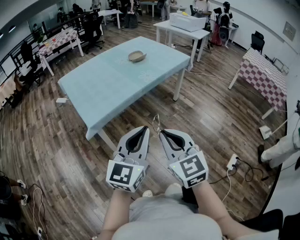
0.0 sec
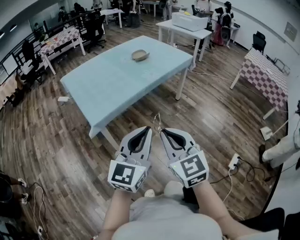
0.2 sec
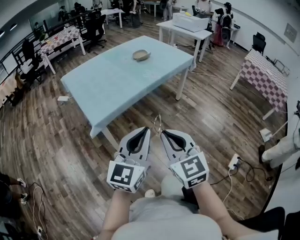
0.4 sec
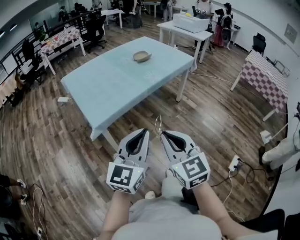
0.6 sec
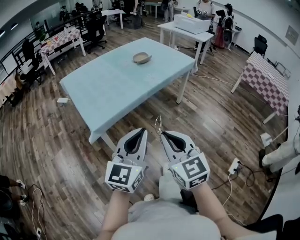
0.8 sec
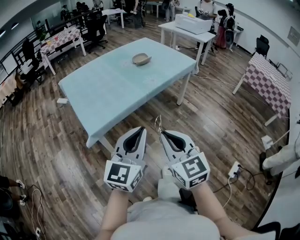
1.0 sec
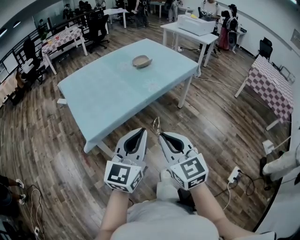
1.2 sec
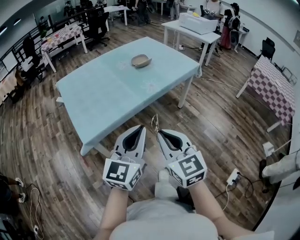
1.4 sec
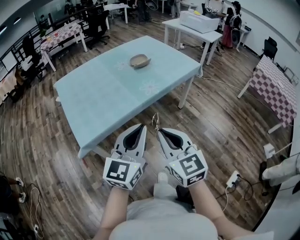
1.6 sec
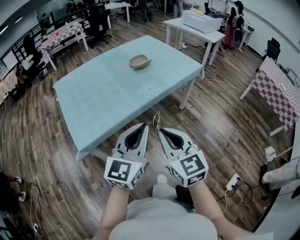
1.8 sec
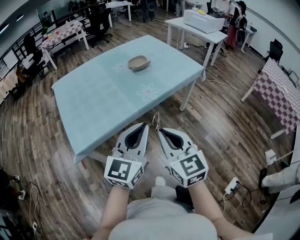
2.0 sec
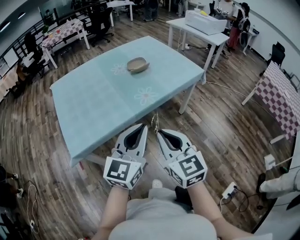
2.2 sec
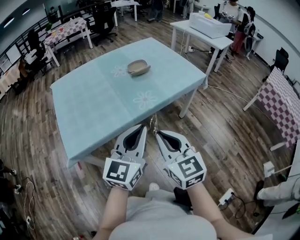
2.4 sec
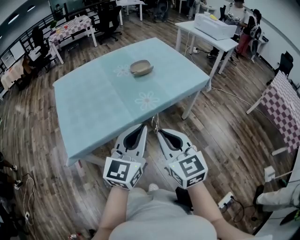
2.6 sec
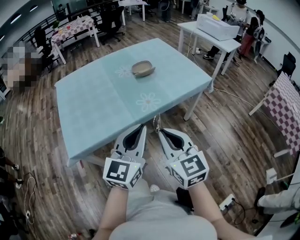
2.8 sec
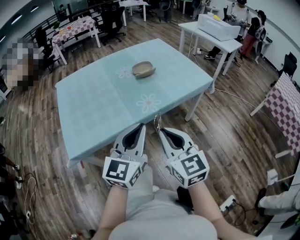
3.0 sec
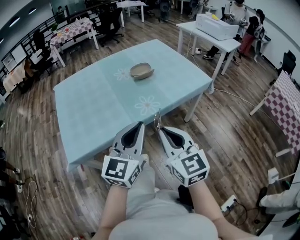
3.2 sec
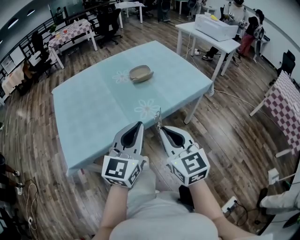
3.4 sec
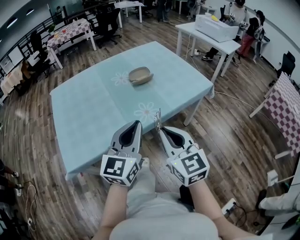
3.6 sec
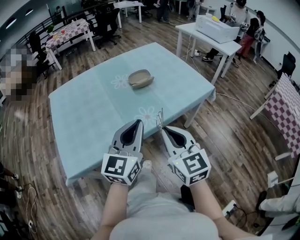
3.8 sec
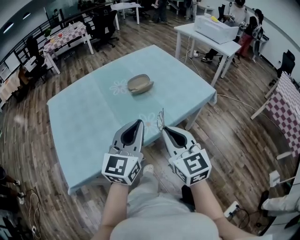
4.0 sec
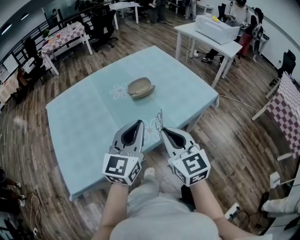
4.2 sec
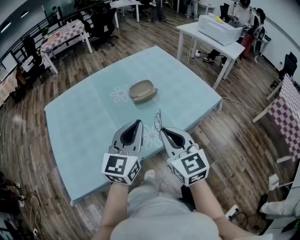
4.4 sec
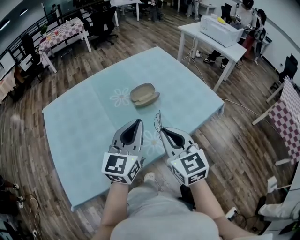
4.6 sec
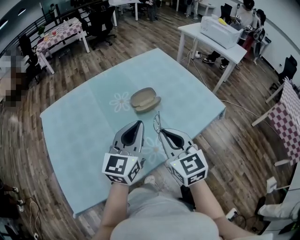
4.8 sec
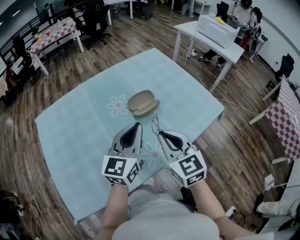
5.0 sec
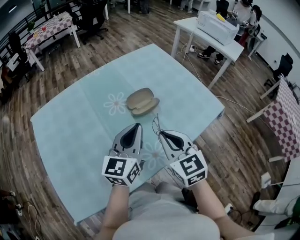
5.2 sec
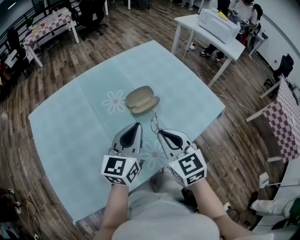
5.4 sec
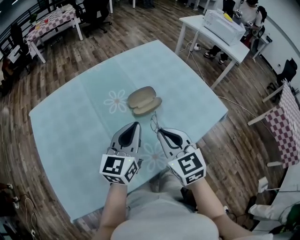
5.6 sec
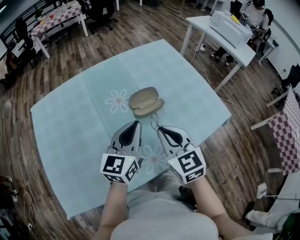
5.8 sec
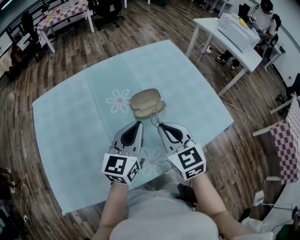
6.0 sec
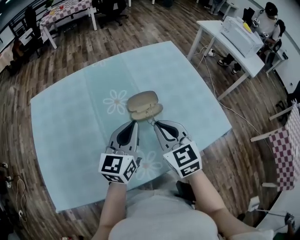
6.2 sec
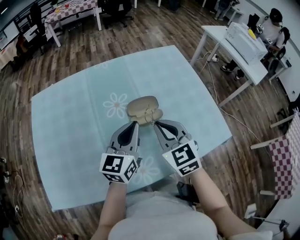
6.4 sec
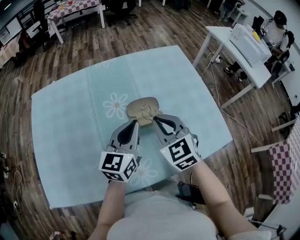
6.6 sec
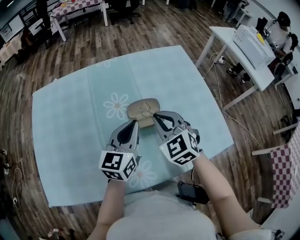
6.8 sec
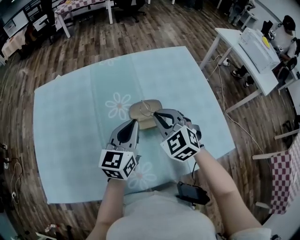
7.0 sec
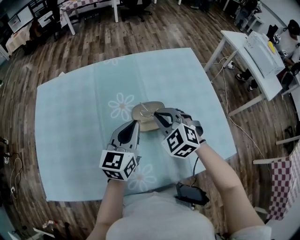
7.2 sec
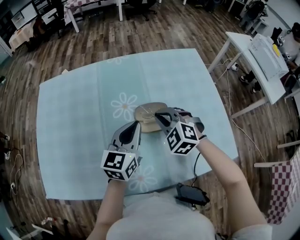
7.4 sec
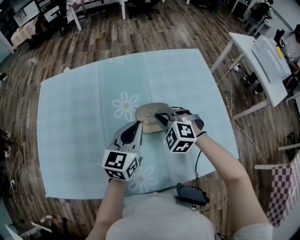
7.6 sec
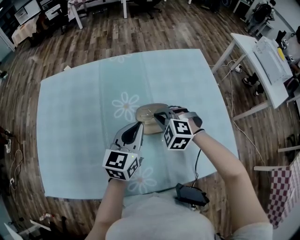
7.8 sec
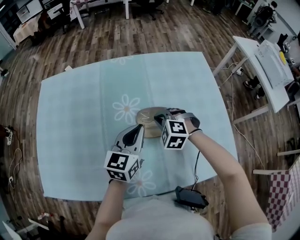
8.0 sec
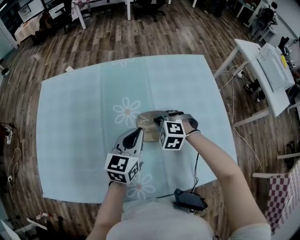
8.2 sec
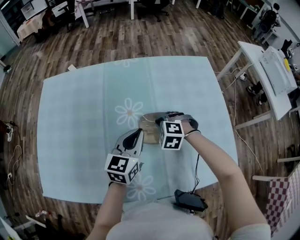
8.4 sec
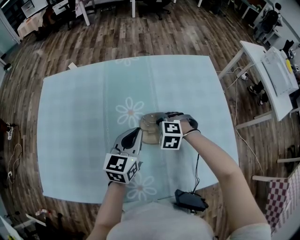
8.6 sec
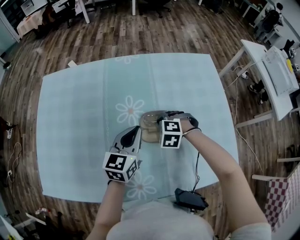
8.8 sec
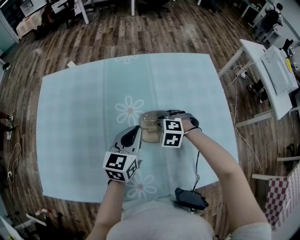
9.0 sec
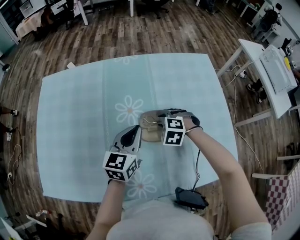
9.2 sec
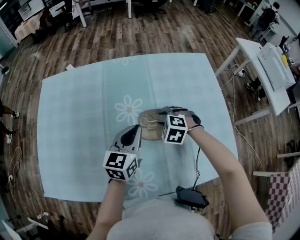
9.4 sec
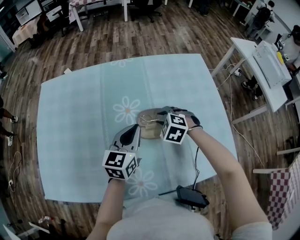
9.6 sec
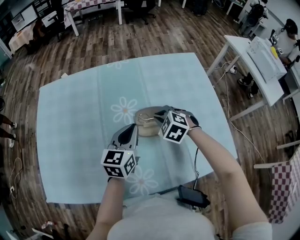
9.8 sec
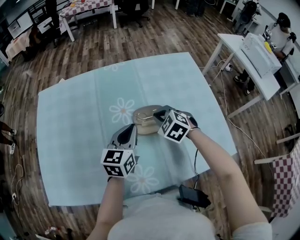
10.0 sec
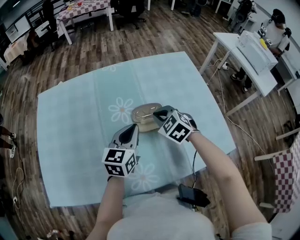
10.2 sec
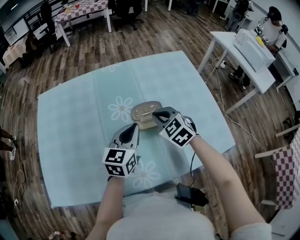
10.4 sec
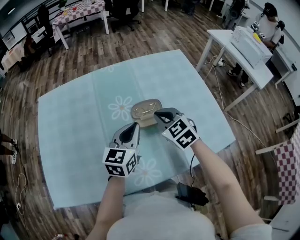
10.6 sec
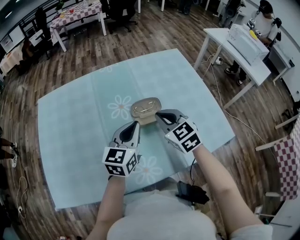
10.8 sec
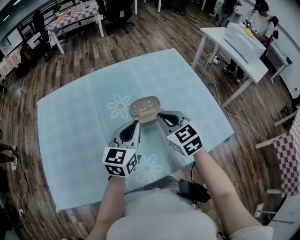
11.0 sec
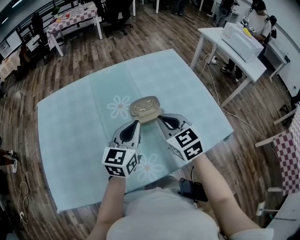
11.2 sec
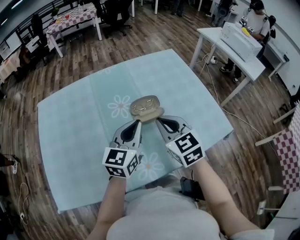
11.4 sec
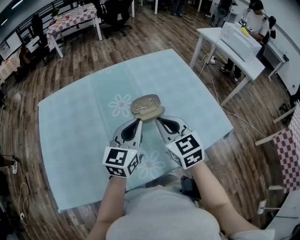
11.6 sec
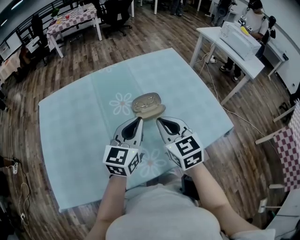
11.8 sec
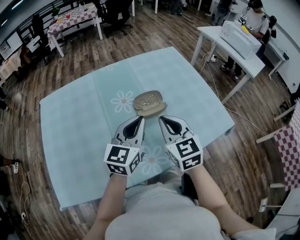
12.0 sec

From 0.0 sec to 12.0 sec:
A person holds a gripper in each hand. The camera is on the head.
From 0.0 sec to 1.6 sec: Both grippers move forward, approximately 20 cm.
From 1.6 sec to 3.0 sec: Both grippers move forward and to the right, about 15 cm.
From 3.0 sec to 4.4 sec: Both grippers travel together forward, about 25 cm.
From 4.4 sec to 6.0 sec: Both grippers travel together forward, some 20 cm.
From 6.0 sec to 7.6 sec: The left gripper moves forward and downward, roughly 10 cm. Meanwhile the right gripper travels forward and downward by some 20 cm, and twists approximately 50 degrees counterclockwise, seen from behind.
From 7.6 sec to 9.0 sec: The right gripper heads downward, covering some 10 cm, and swivels roughly 20 degrees. The left gripper changes place by about 5 cm.
From 9.0 sec to 10.4 sec: The right gripper goes approximately 15 cm upward, and swivels approximately 50 degrees. The left gripper heads backward, covering some 5 cm.
From 10.4 sec to 12.0 sec: The left gripper goes roughly 10 cm backward and upward; the right gripper shifts some 15 cm backward and upward, and changes its angle by about 40 degrees.

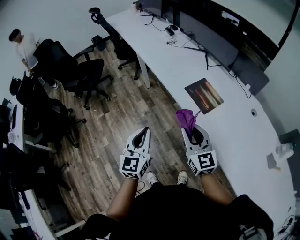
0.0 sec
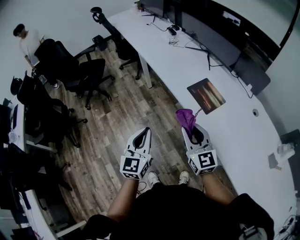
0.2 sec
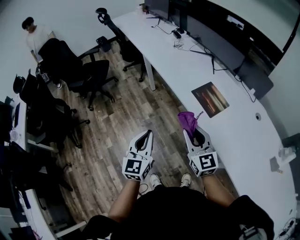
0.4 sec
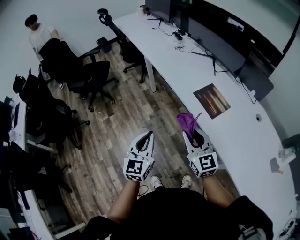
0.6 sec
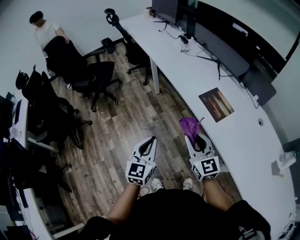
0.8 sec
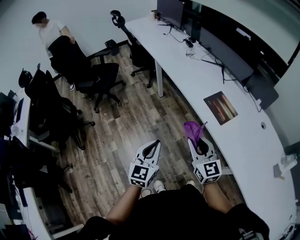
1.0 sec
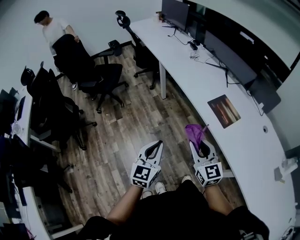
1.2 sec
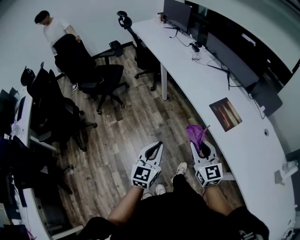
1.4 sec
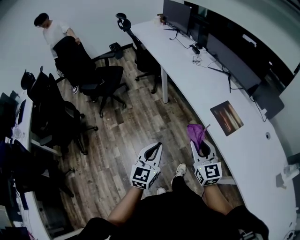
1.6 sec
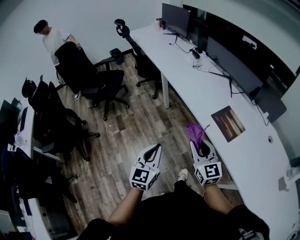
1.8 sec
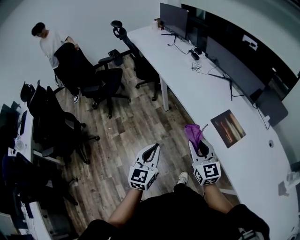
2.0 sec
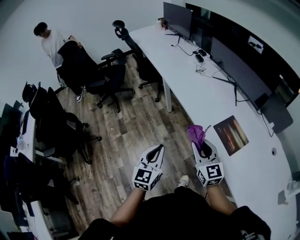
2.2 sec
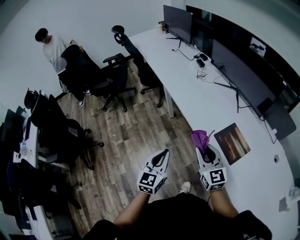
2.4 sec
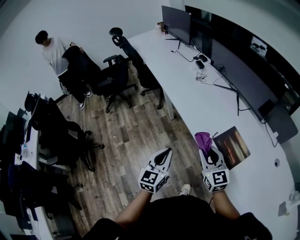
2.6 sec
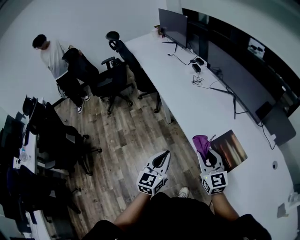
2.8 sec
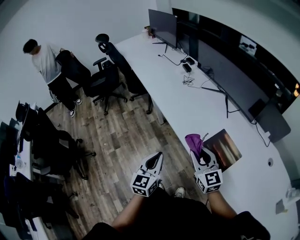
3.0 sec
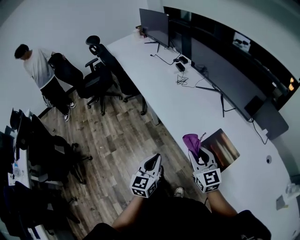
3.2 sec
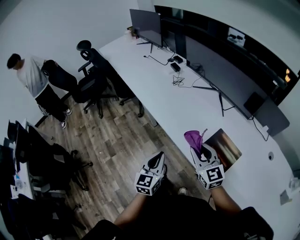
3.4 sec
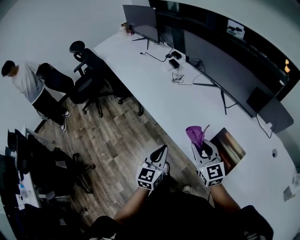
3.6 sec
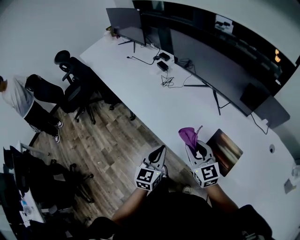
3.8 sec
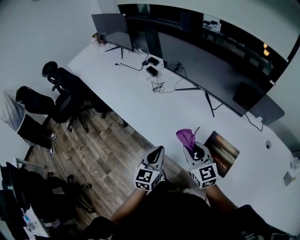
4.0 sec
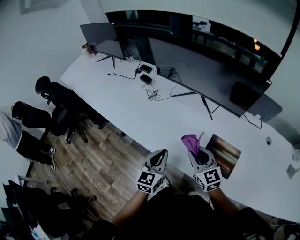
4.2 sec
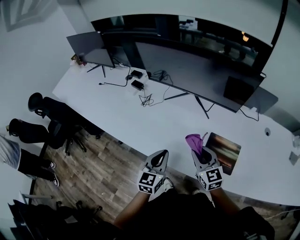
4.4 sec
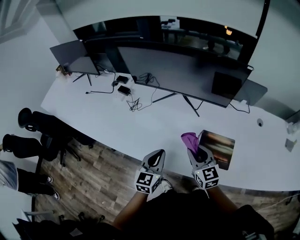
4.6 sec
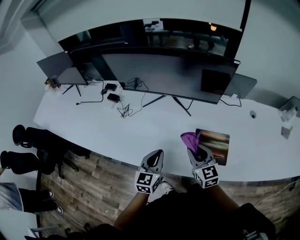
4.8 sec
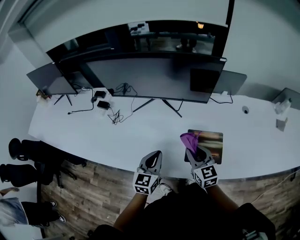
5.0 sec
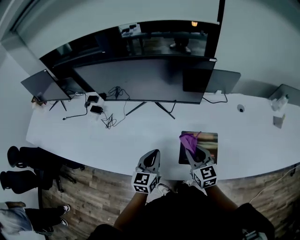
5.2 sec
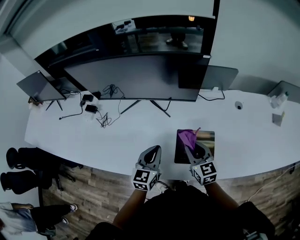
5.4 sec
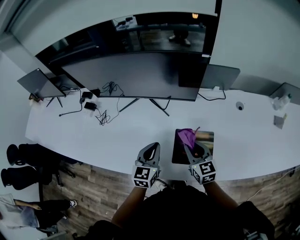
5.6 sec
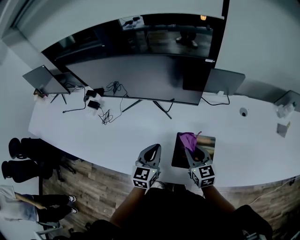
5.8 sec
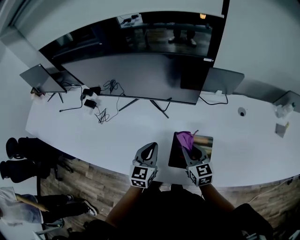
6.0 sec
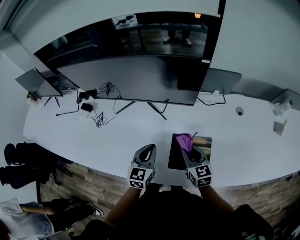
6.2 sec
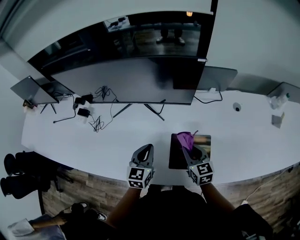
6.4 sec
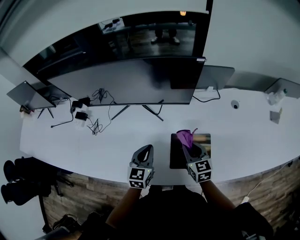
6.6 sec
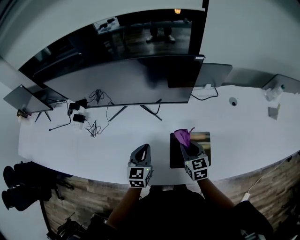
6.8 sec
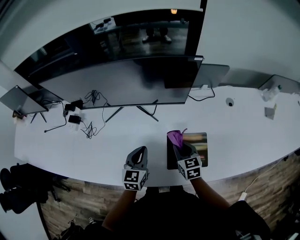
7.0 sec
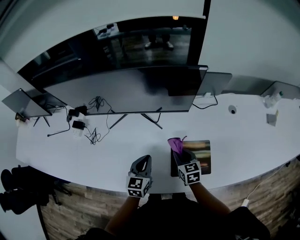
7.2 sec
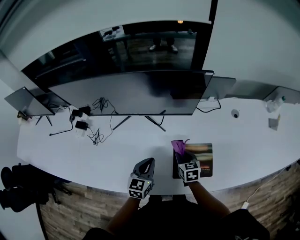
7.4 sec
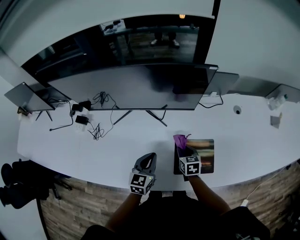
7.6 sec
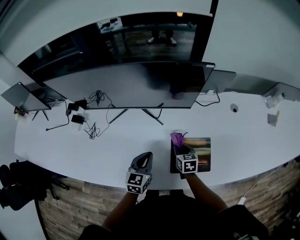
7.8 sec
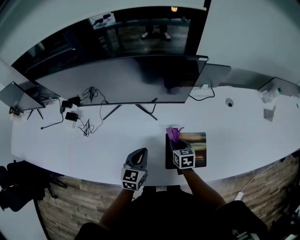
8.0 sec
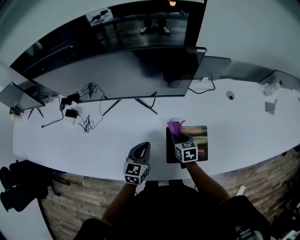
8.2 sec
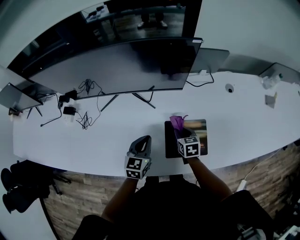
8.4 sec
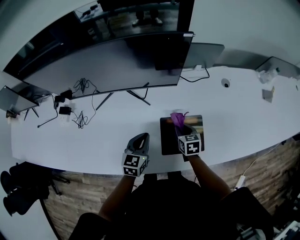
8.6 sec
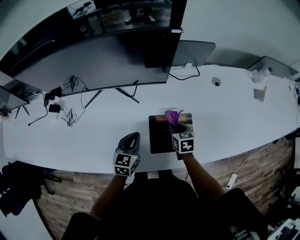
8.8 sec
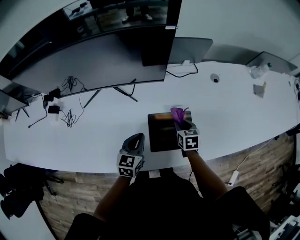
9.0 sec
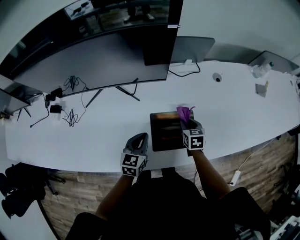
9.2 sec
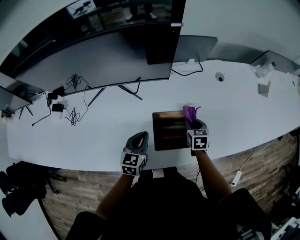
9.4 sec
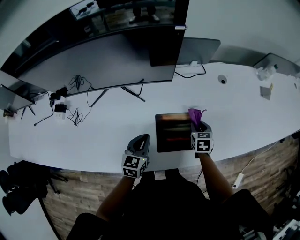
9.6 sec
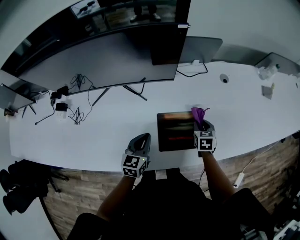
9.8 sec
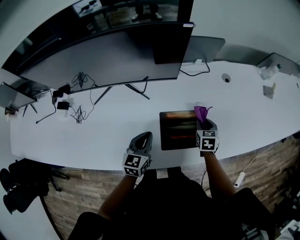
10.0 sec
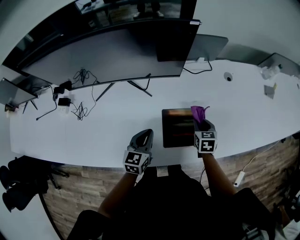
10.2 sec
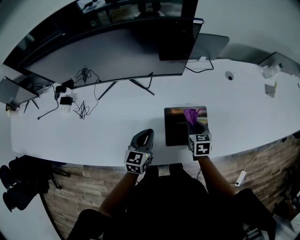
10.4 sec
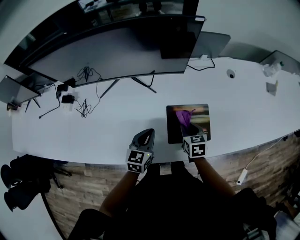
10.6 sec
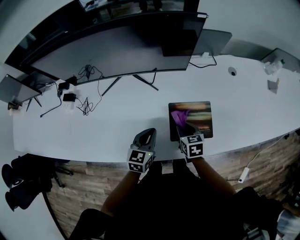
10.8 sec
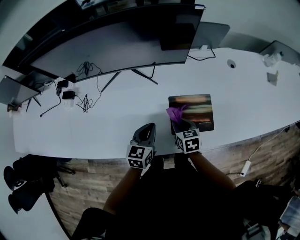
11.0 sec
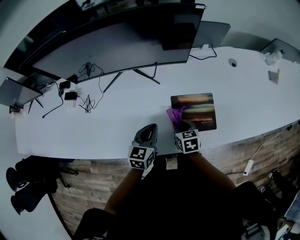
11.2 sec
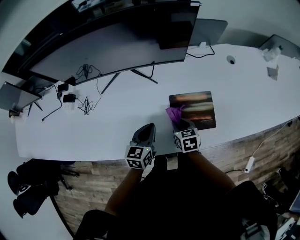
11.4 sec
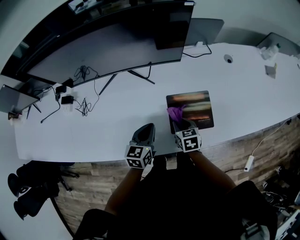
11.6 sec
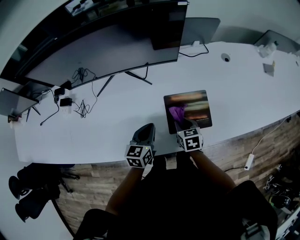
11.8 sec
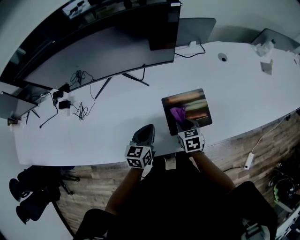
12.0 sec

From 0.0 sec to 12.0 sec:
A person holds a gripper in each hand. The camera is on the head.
From 0.0 sec to 1.6 sec: Both grippers travel together to the left, roughly 10 cm.
From 1.6 sec to 3.0 sec: Both grippers move forward and to the right, approximately 25 cm.
From 3.0 sec to 4.4 sec: The left gripper changes place by approximately 25 cm, and changes its angle by about 40 degrees. The right gripper moves roughly 20 cm, and swivels roughly 30 degrees.
From 4.4 sec to 6.0 sec: The right gripper travels to the right by about 15 cm, and swivels some 20 degrees. Meanwhile the left gripper moves to the right and forward, some 15 cm.
From 6.0 sec to 7.6 sec: The left gripper shifts by about 5 cm; the right gripper heads downward, covering approximately 10 cm, and turns by roughly 30 degrees.
From 7.6 sec to 9.0 sec: The left gripper heads to the right, covering some 5 cm, while the right gripper moves to the right, about 10 cm.
From 9.0 sec to 10.4 sec: The right gripper travels to the right and back again, approximately 5 cm each way.
From 10.4 sec to 12.0 sec: The right gripper travels backward and to the left by about 5 cm.
